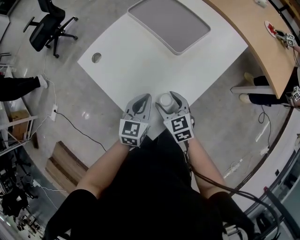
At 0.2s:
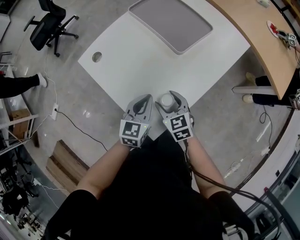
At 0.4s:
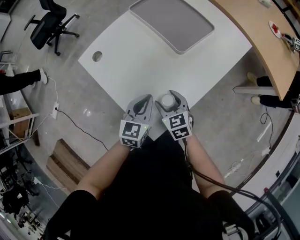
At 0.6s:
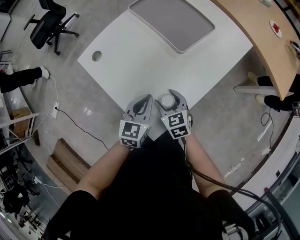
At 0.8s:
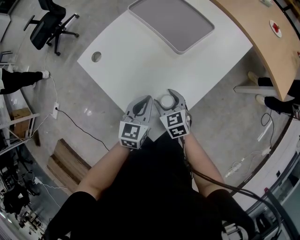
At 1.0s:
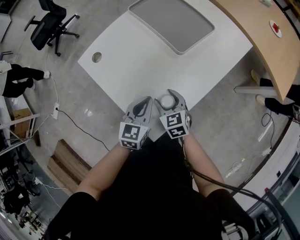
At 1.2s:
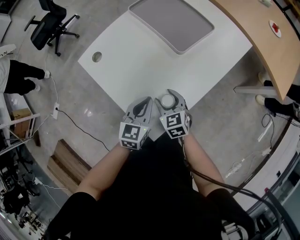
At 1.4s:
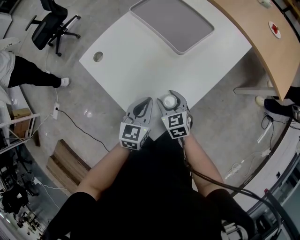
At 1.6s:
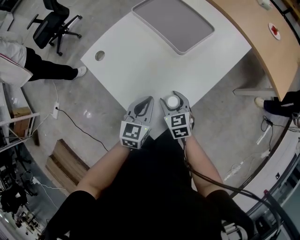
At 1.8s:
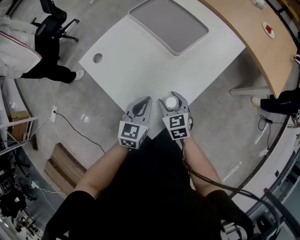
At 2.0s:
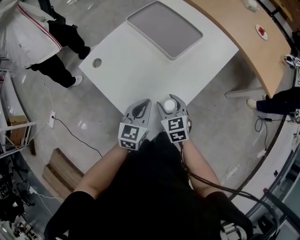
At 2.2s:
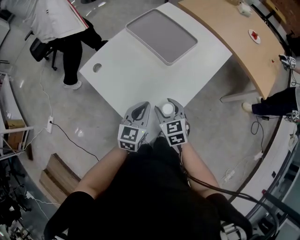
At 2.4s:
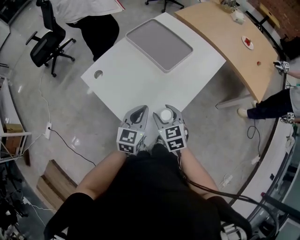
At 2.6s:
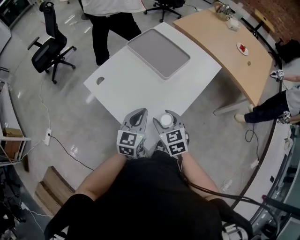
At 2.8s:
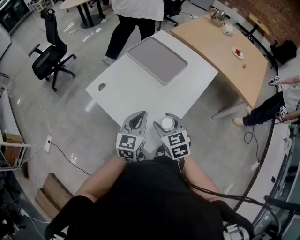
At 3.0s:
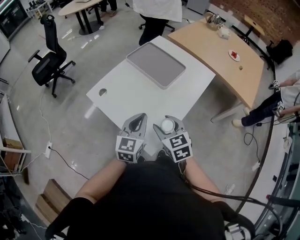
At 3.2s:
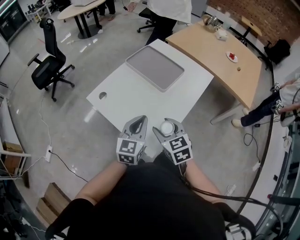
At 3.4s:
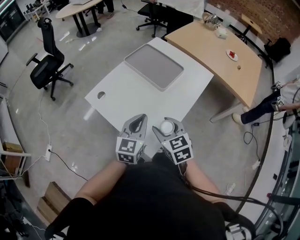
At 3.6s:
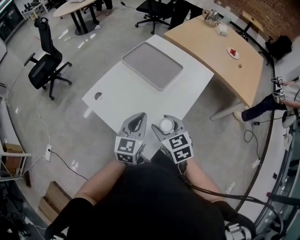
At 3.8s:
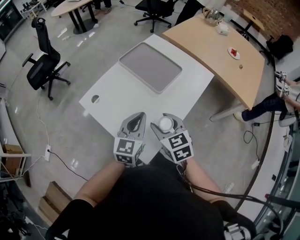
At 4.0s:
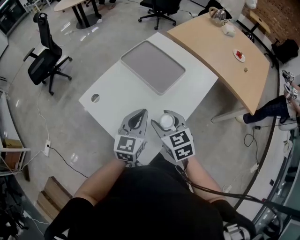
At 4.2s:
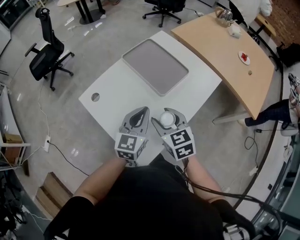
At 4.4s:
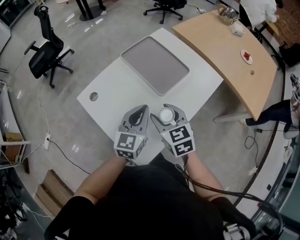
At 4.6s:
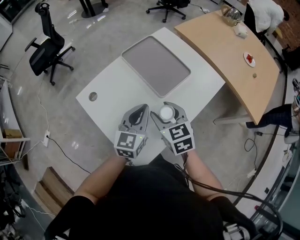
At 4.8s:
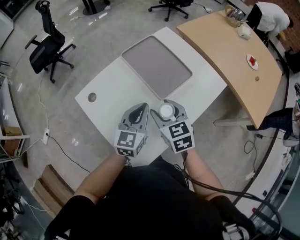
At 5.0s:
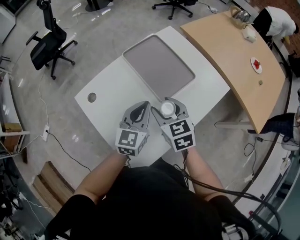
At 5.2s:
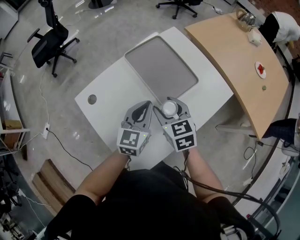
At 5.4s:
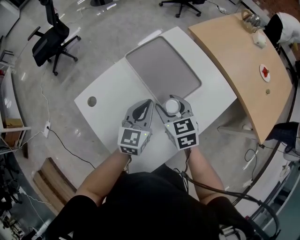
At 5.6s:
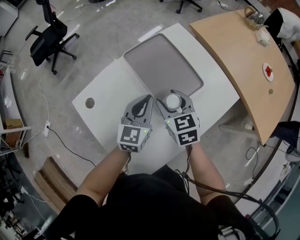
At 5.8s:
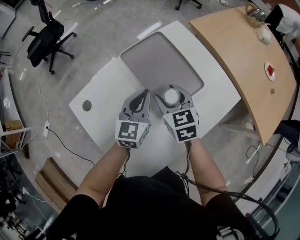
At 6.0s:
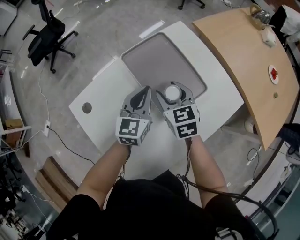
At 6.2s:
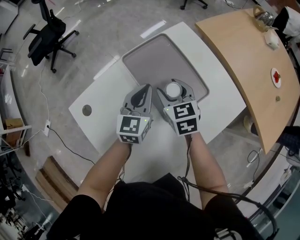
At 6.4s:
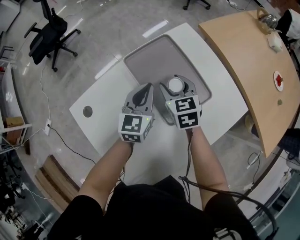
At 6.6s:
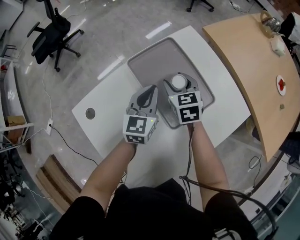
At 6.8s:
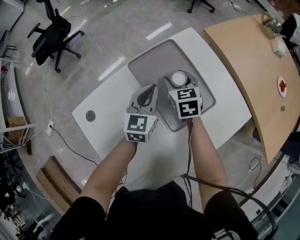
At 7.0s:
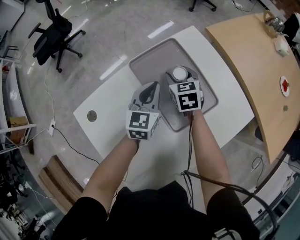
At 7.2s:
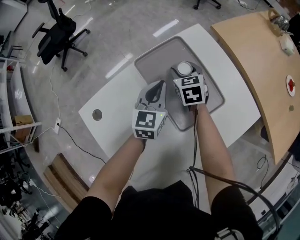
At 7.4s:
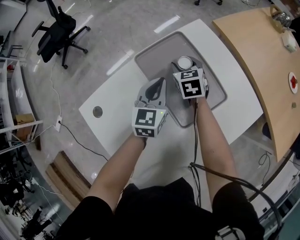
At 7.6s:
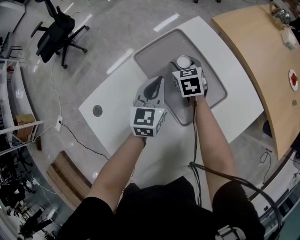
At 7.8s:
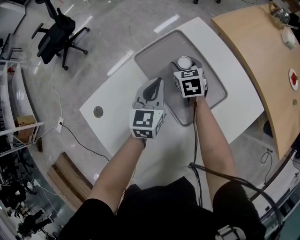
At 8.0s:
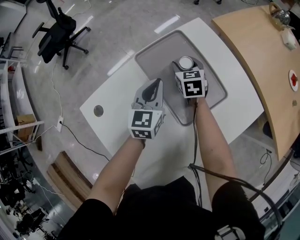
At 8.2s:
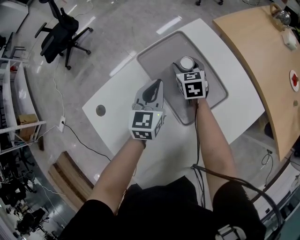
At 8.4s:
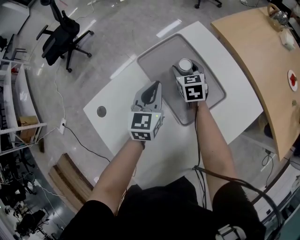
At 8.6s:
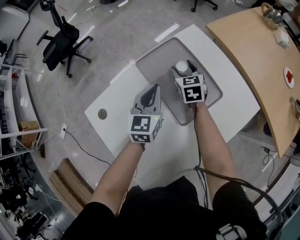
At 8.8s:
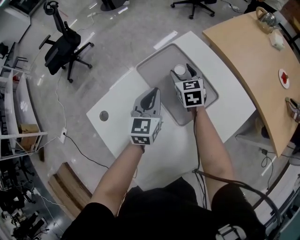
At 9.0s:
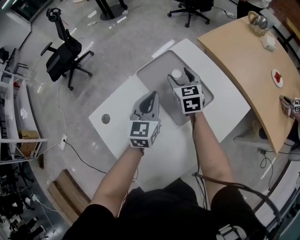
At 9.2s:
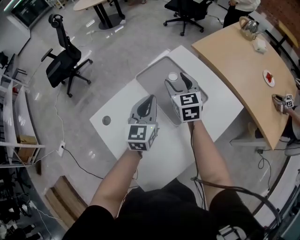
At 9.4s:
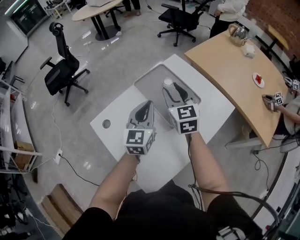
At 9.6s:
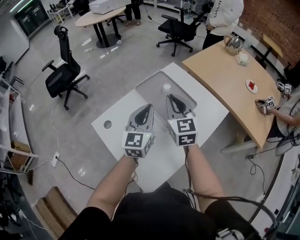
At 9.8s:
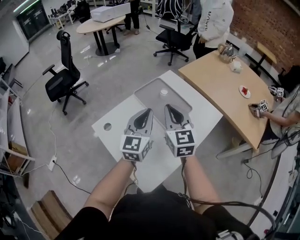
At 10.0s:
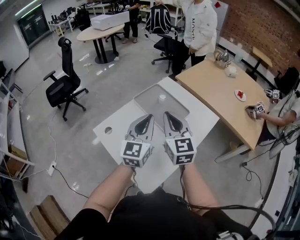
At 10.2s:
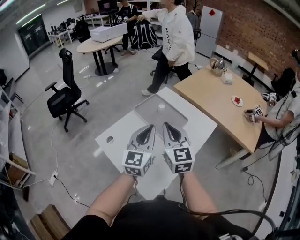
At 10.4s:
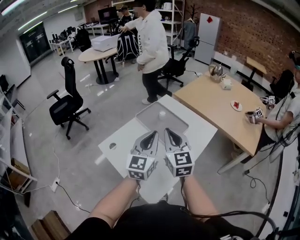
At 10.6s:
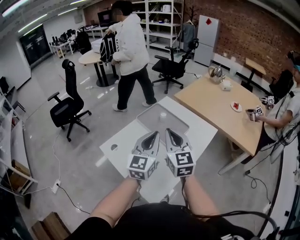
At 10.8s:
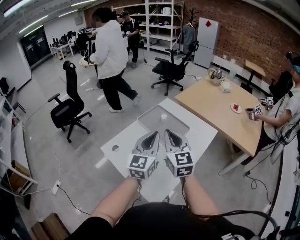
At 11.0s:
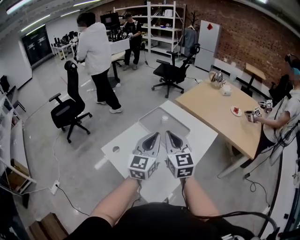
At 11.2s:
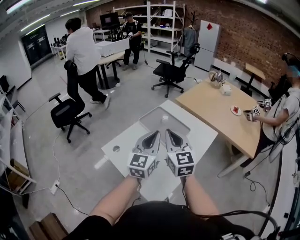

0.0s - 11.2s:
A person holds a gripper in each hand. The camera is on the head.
0.0s - 1.6s: The grippers stay close to where they were, moving slightly.
1.6s - 3.2s: Both grippers travel together upward, about 20 cm.
3.2s - 4.8s: The grippers both shift forward by some 20 cm.
4.8s - 6.4s: The right gripper heads forward and downward, covering about 30 cm; the left gripper shifts roughly 25 cm forward.
6.4s - 8.0s: The right gripper shifts roughly 15 cm forward and downward.
8.0s - 9.6s: The grippers both shift upward and backward by some 35 cm. The right gripper turns by about 30 degrees, and closes its fingers.
9.6s - 11.2s: The two grippers go roughly 20 cm backward and upward.

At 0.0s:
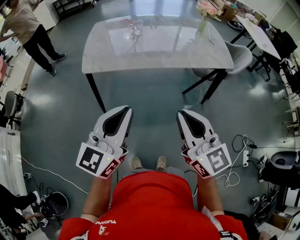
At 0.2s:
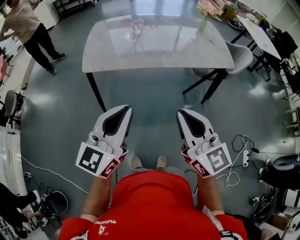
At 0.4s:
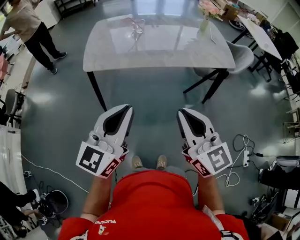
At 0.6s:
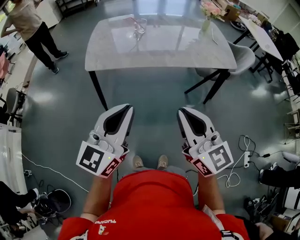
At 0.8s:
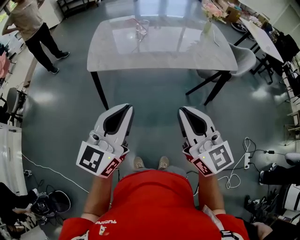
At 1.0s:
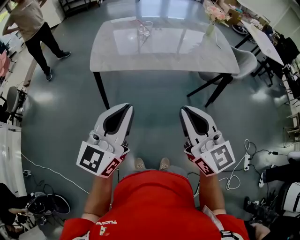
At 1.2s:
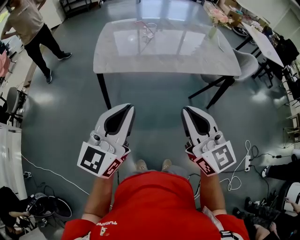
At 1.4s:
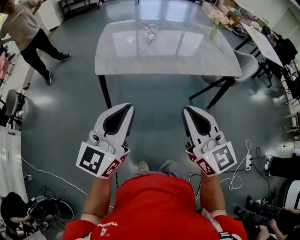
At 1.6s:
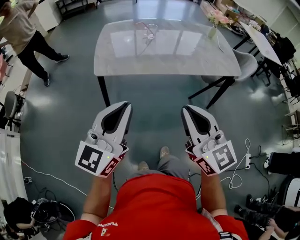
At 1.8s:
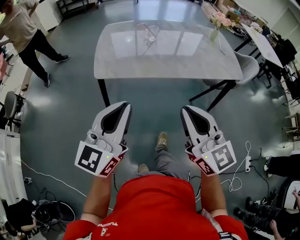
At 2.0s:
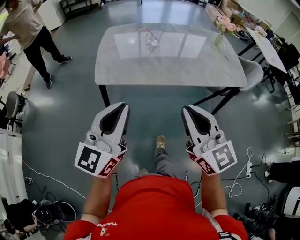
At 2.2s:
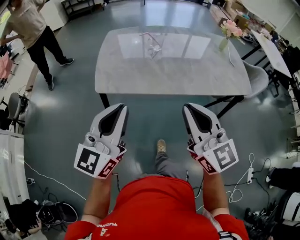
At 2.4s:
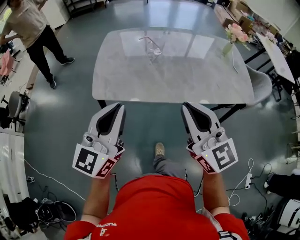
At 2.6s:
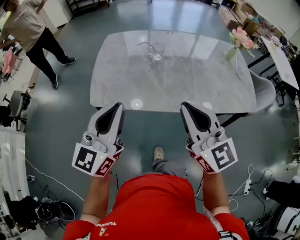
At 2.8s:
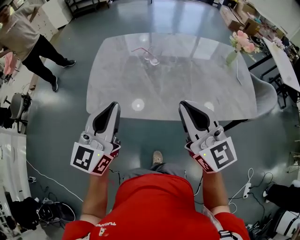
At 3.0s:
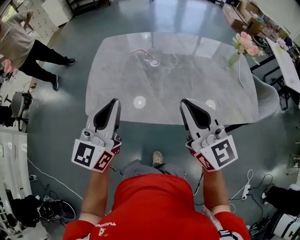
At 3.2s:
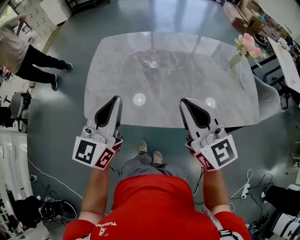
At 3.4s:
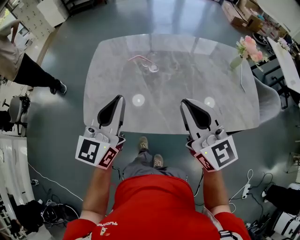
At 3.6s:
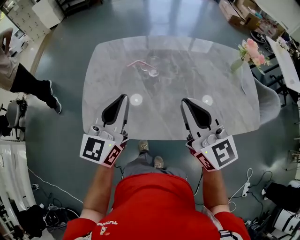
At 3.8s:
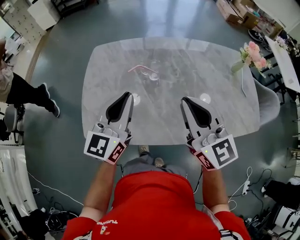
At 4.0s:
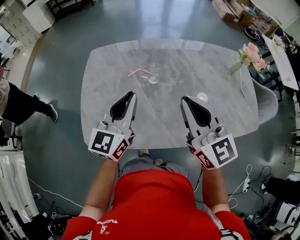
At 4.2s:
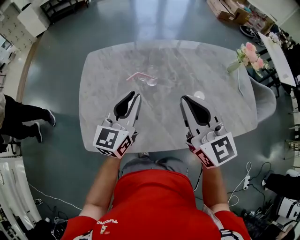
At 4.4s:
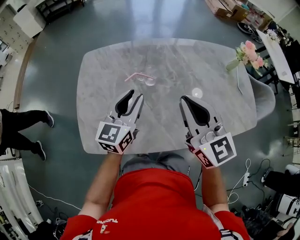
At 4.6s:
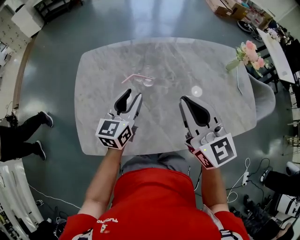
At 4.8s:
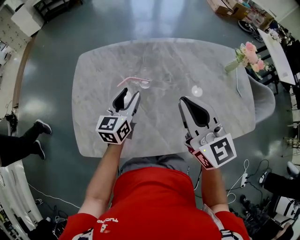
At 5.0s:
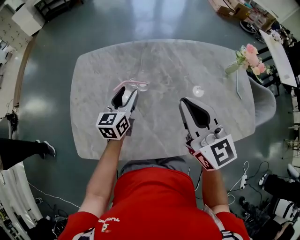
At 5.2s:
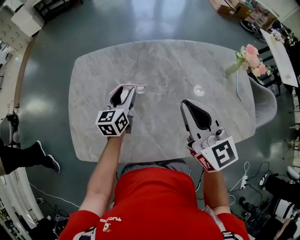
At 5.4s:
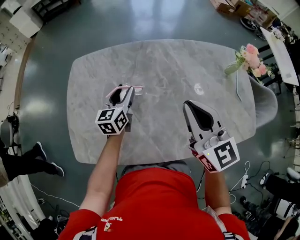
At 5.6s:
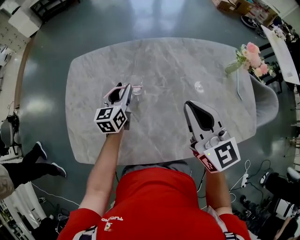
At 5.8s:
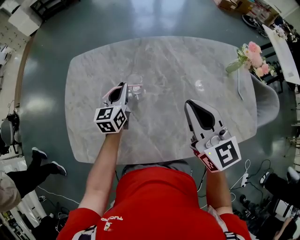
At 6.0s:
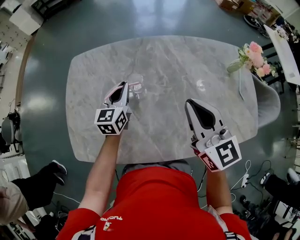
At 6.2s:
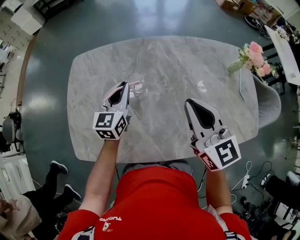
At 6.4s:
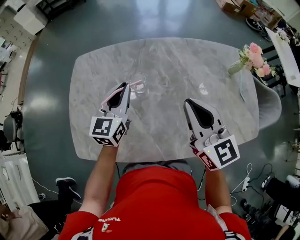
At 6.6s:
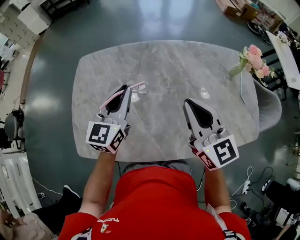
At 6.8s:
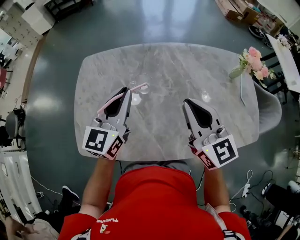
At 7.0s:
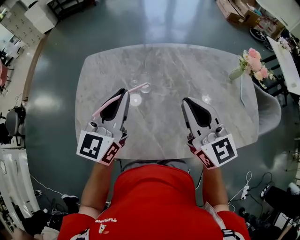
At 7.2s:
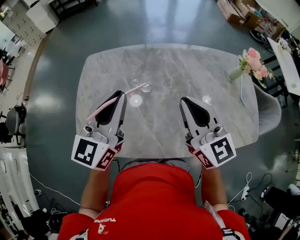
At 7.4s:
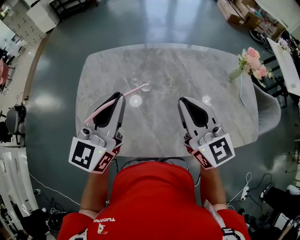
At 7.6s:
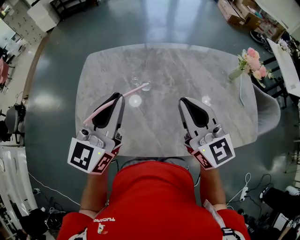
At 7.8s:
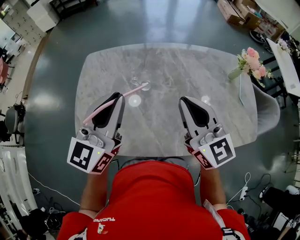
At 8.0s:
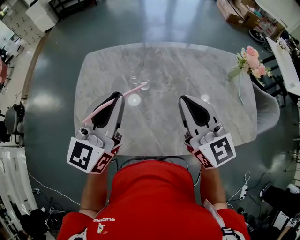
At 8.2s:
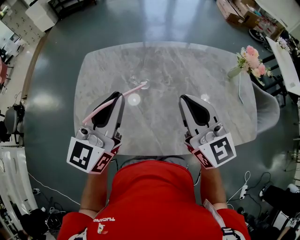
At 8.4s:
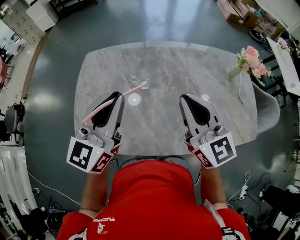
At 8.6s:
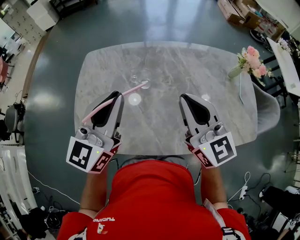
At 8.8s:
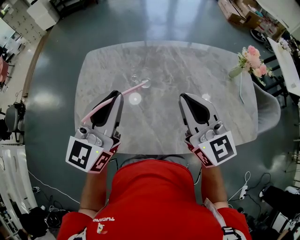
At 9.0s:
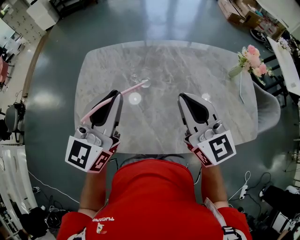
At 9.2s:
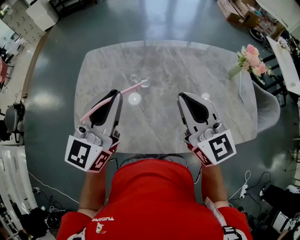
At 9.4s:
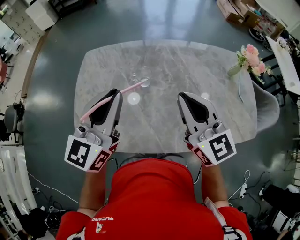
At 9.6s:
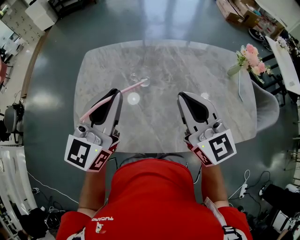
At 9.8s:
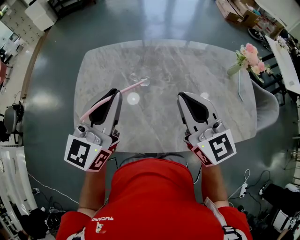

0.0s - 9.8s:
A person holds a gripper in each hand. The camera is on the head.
0.0s - 1.4s: The two grippers go approximately 10 cm to the left.
1.4s - 2.8s: Both grippers move forward, roughly 30 cm.
2.8s - 4.2s: Both grippers travel together forward, about 25 cm.
4.2s - 5.6s: The left gripper travels forward and downward by approximately 20 cm, turns by some 20 degrees, and opens up. Meanwhile the right gripper goes about 10 cm to the right and forward.
5.6s - 7.0s: The left gripper is displaced upward and backward by roughly 25 cm, rotates roughly 20 degrees, and closes.
7.0s - 8.4s: The left gripper moves roughly 5 cm.
8.4s - 9.8s: The two grippers keep their place.

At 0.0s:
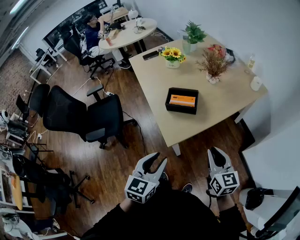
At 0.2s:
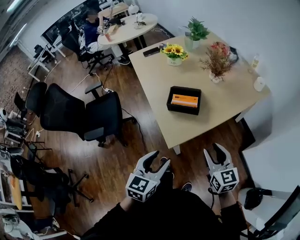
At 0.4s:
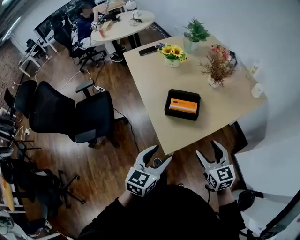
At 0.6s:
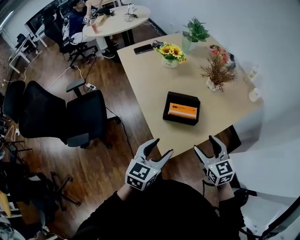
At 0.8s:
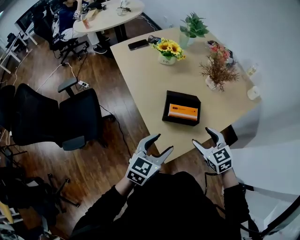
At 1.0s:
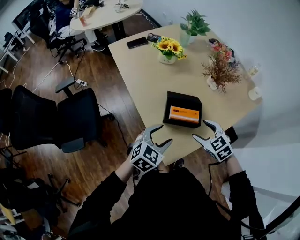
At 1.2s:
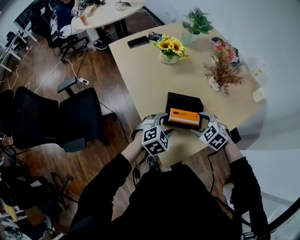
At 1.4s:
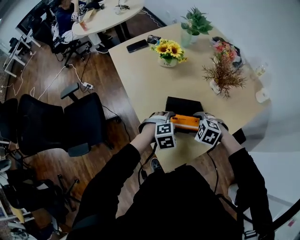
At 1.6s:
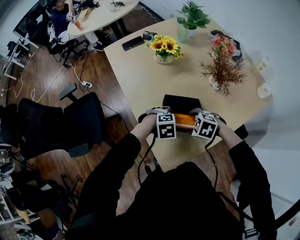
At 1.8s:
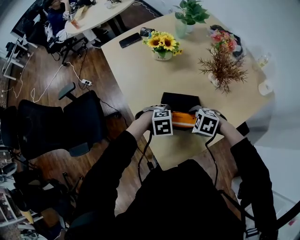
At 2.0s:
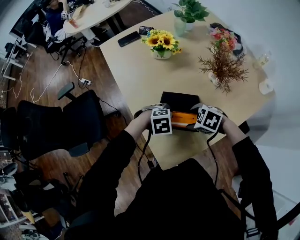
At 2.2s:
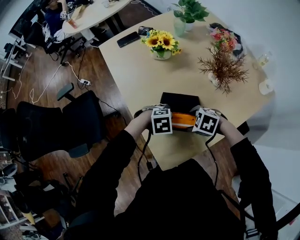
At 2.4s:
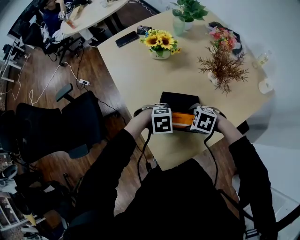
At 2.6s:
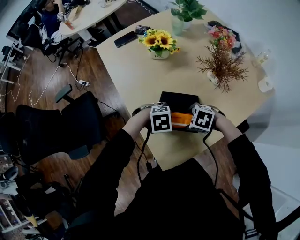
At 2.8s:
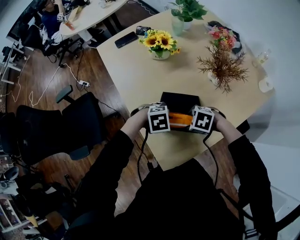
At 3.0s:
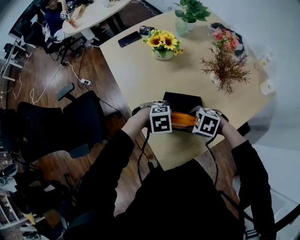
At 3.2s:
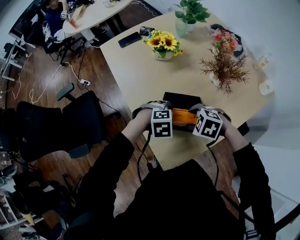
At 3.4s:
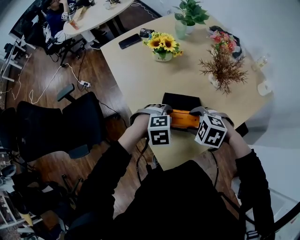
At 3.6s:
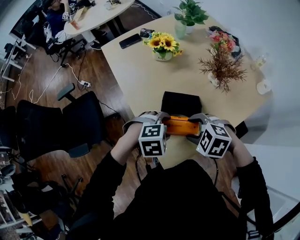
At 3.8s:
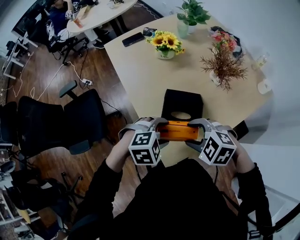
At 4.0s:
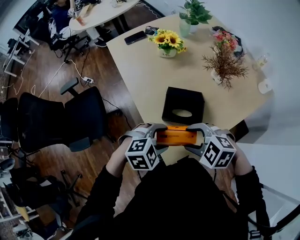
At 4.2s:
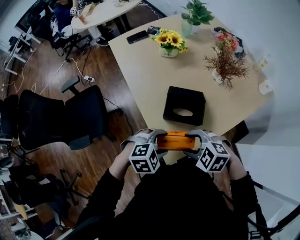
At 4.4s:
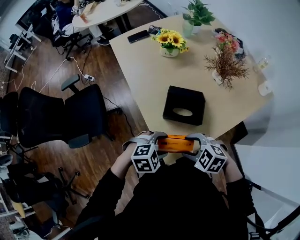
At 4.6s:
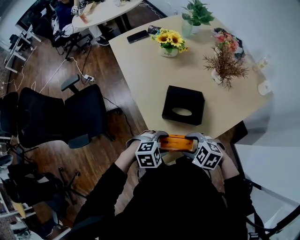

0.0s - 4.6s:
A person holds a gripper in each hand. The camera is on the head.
0.0s - 1.6s: The left gripper shifts by roughly 40 cm, tips its fingers downward by roughly 50 degrees, and opens its fingers, while the right gripper moves roughly 40 cm, angles its fingers downward, by some 50 degrees, and opens.
1.6s - 3.0s: The grippers stay close to where they were, moving slightly.
3.0s - 4.6s: The right gripper moves roughly 15 cm upward and comes back; the left gripper reaches about 10 cm upward, then returns.
